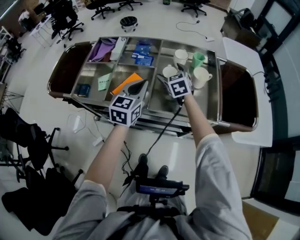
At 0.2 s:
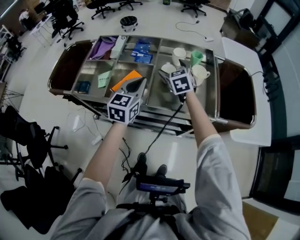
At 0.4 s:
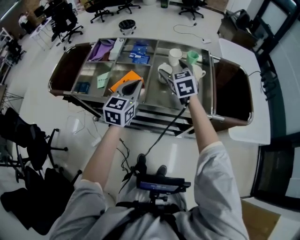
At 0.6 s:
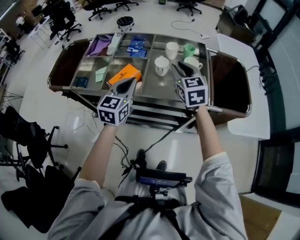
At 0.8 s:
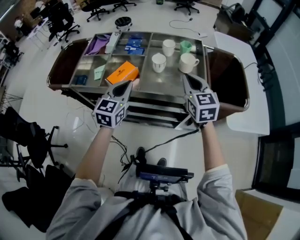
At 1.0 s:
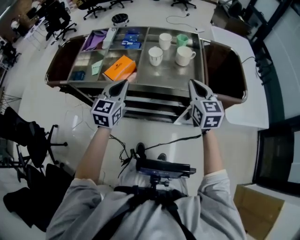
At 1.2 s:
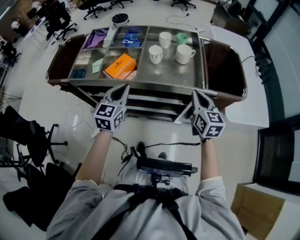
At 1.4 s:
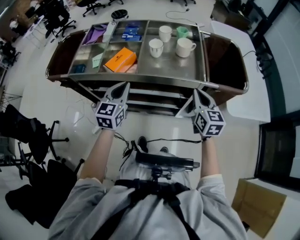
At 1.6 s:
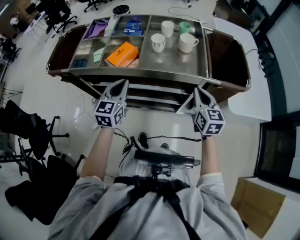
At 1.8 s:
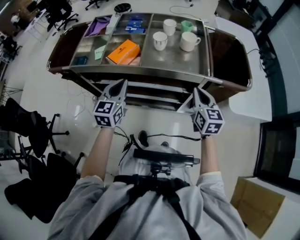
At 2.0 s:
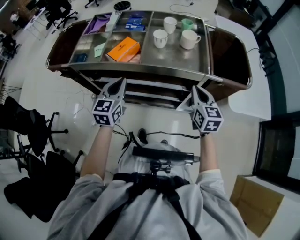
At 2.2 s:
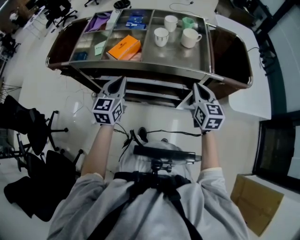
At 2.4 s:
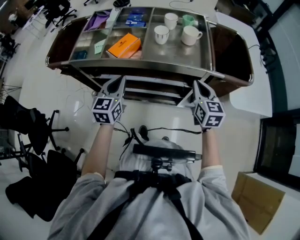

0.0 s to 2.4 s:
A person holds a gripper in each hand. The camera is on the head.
0.0 to 1.2 s: The left gripper shifts about 15 cm backward; the right gripper moves backward and to the right, roughly 35 cm, swivels about 30 degrees, and closes up.
1.2 to 2.4 s: The left gripper changes place by roughly 5 cm.

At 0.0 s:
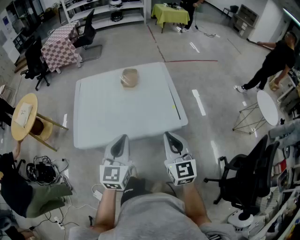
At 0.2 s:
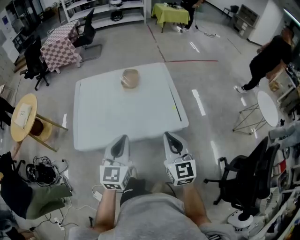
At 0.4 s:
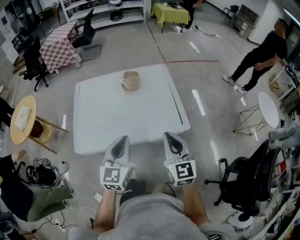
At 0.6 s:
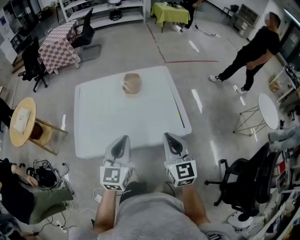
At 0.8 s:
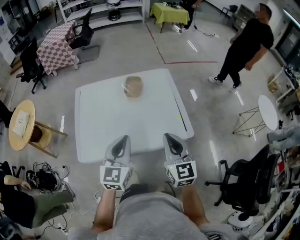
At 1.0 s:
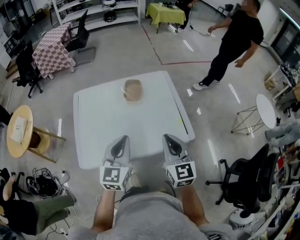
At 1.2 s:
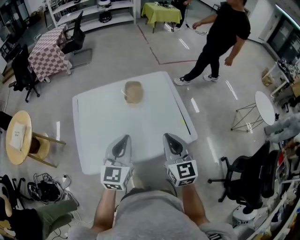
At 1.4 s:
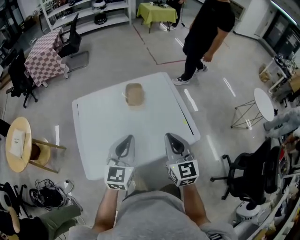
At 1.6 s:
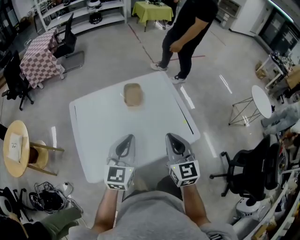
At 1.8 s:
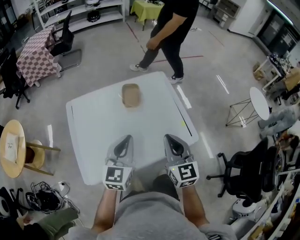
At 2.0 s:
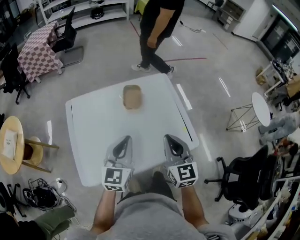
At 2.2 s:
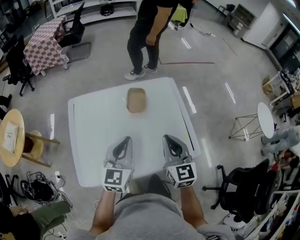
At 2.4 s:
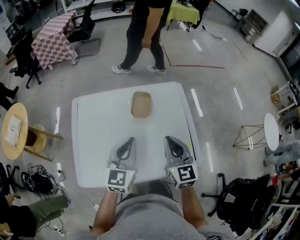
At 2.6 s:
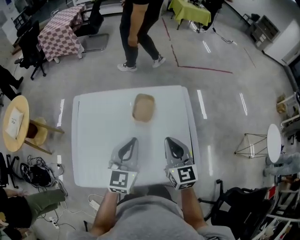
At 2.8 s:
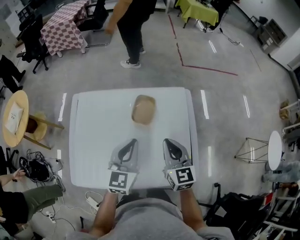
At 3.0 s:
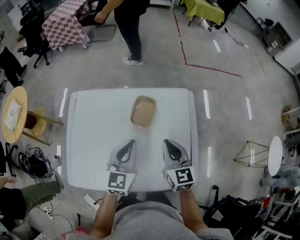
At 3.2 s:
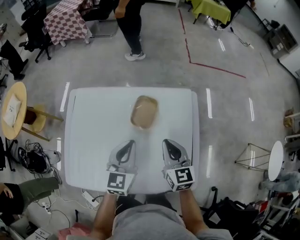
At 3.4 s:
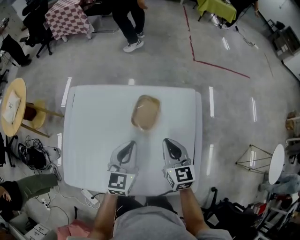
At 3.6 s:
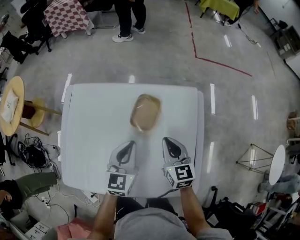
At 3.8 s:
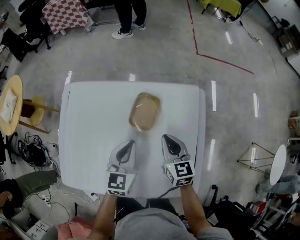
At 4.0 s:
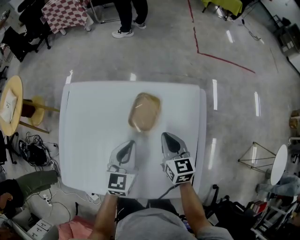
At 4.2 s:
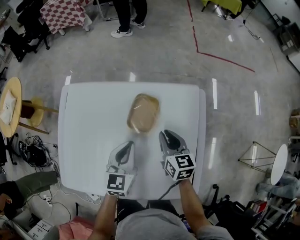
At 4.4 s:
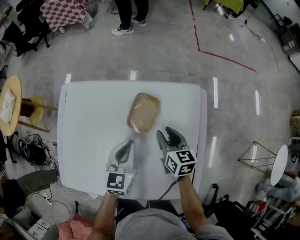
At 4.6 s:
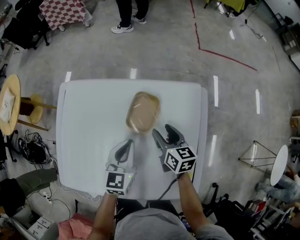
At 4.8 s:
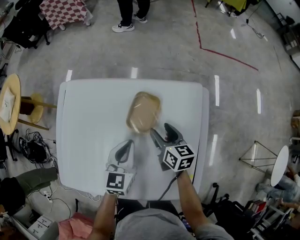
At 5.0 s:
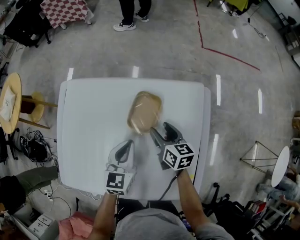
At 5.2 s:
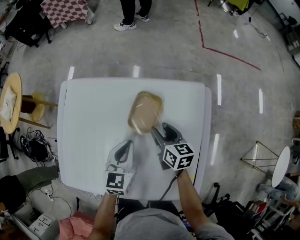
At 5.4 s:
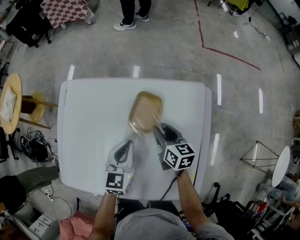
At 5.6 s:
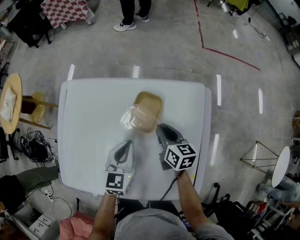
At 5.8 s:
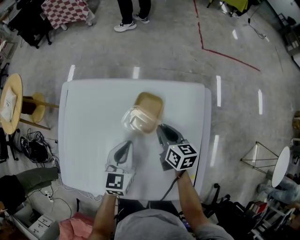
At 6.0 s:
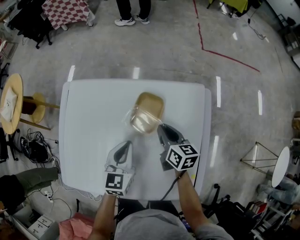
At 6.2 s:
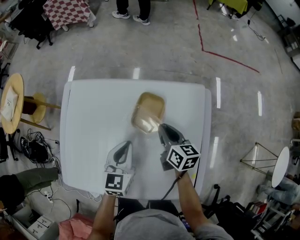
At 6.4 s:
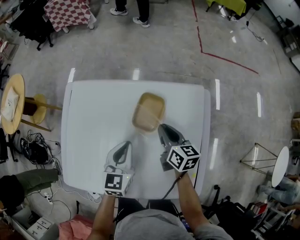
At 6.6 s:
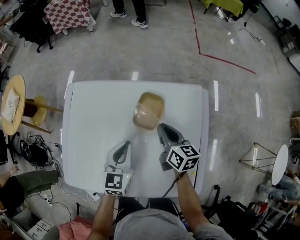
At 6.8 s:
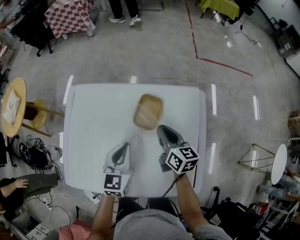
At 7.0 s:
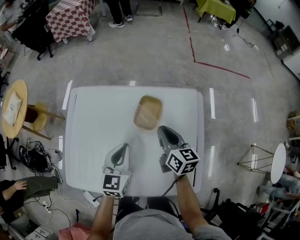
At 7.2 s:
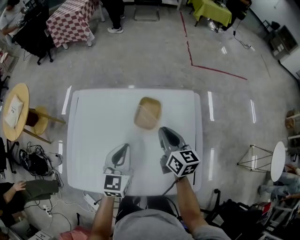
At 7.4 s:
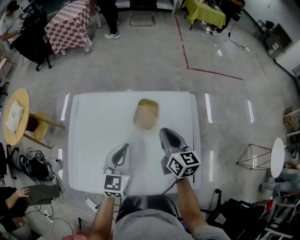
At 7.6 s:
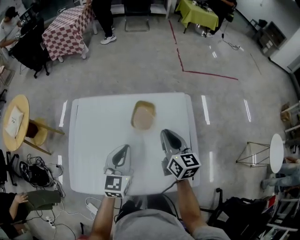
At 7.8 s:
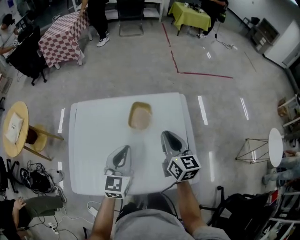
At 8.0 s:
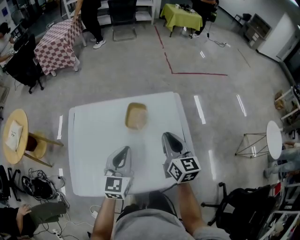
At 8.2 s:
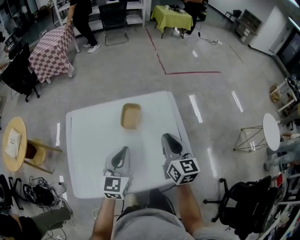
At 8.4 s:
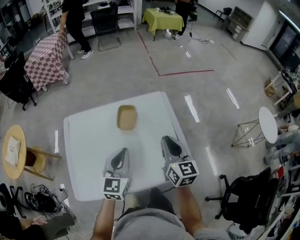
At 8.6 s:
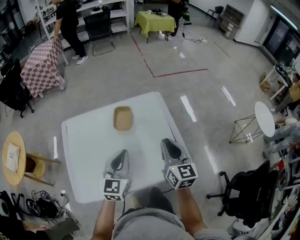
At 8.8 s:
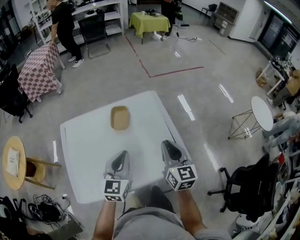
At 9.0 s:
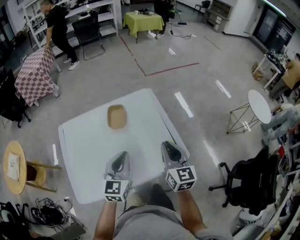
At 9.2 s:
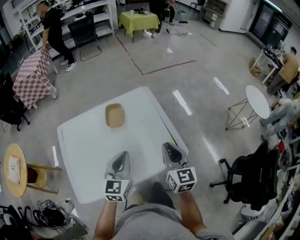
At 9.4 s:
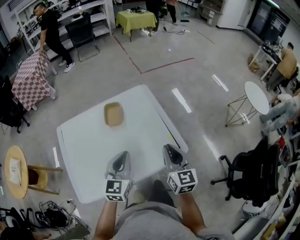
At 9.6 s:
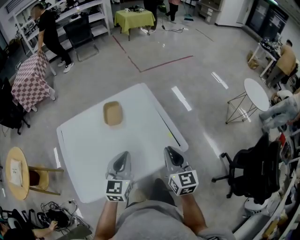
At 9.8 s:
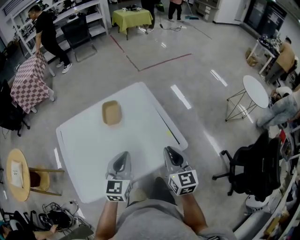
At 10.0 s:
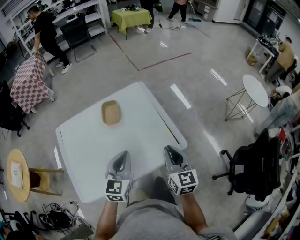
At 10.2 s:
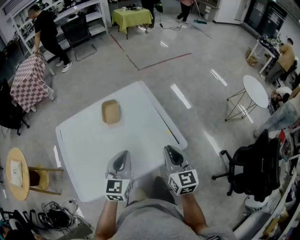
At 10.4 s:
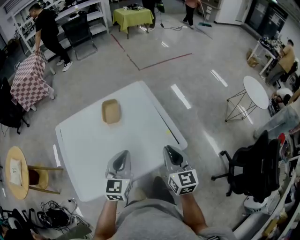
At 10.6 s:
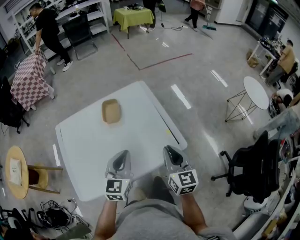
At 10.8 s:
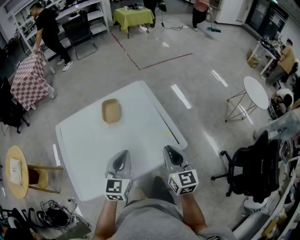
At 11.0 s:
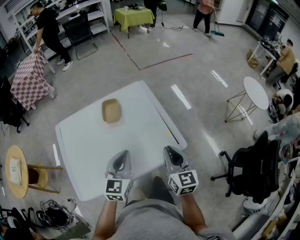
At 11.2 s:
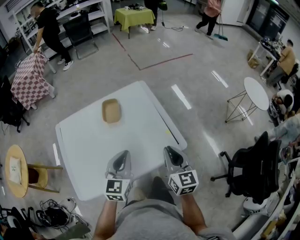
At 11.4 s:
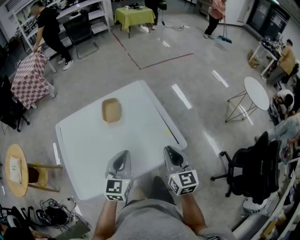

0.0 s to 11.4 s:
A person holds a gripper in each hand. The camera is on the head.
0.0 to 1.4 s: Both grippers move forward and to the left, roughly 20 cm.
1.4 to 2.8 s: Both grippers travel together forward, some 20 cm.
2.8 to 4.2 s: The grippers both shift downward and forward by approximately 20 cm. The right gripper swivels about 20 degrees.
4.2 to 5.6 s: The right gripper ends up approximately 5 cm from where it was, and opens, then closes once more.
5.6 to 7.2 s: The grippers both shift upward and backward by approximately 15 cm.
7.2 to 8.6 s: The right gripper shifts some 25 cm backward, upward and to the right, and turns by roughly 30 degrees. Meanwhile the left gripper travels backward, upward and to the right by approximately 15 cm.
8.6 to 10.0 s: The right gripper shifts roughly 15 cm backward and to the right. Meanwhile the left gripper goes roughly 10 cm backward and to the right.
10.0 to 11.4 s: Neither gripper changes place.

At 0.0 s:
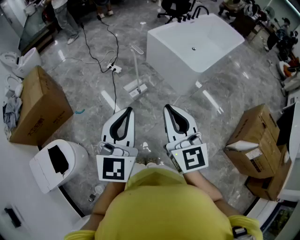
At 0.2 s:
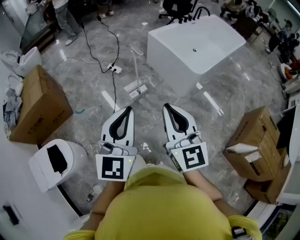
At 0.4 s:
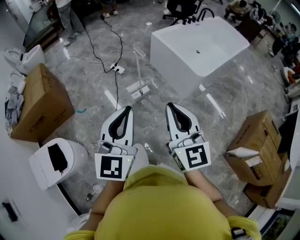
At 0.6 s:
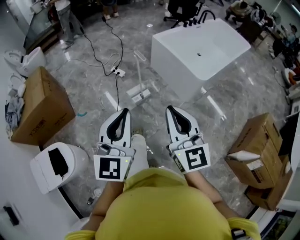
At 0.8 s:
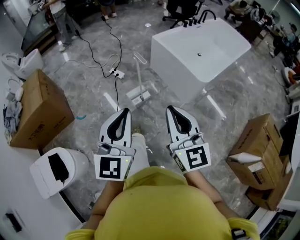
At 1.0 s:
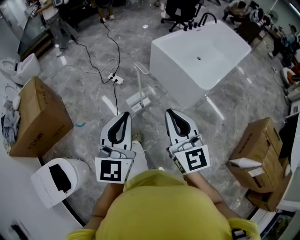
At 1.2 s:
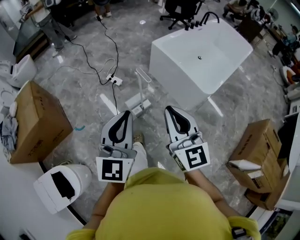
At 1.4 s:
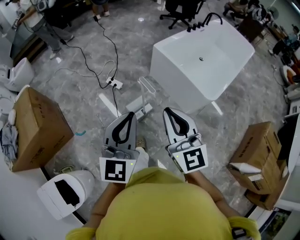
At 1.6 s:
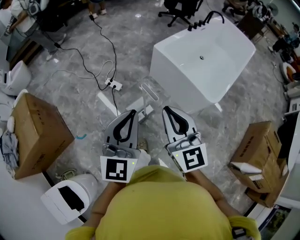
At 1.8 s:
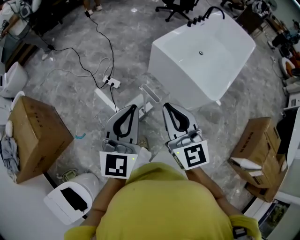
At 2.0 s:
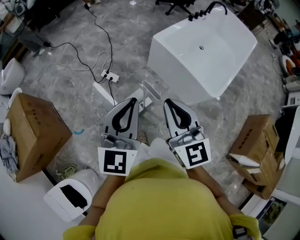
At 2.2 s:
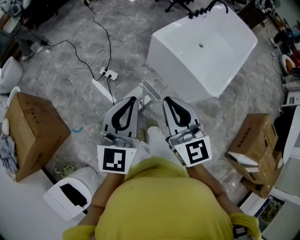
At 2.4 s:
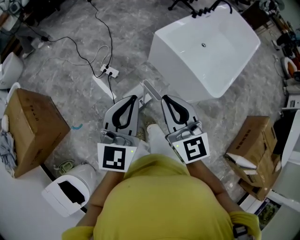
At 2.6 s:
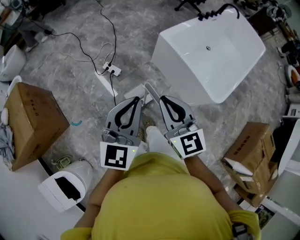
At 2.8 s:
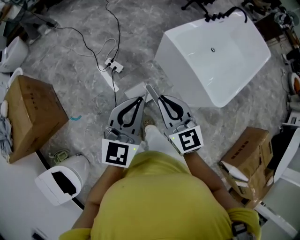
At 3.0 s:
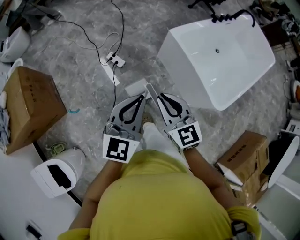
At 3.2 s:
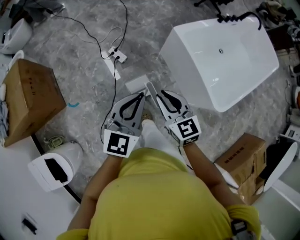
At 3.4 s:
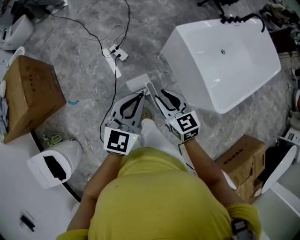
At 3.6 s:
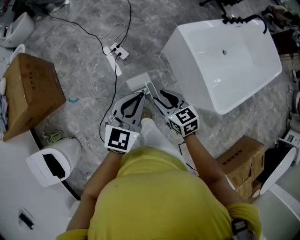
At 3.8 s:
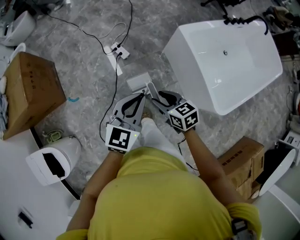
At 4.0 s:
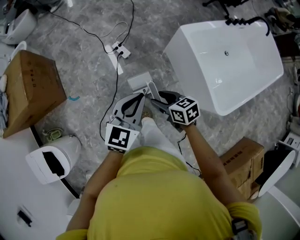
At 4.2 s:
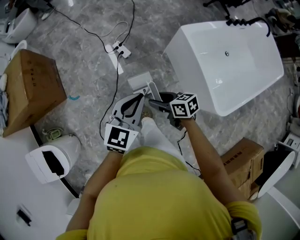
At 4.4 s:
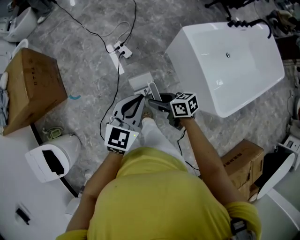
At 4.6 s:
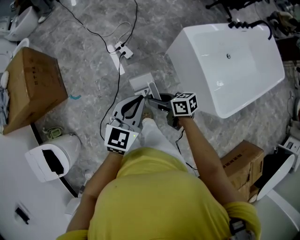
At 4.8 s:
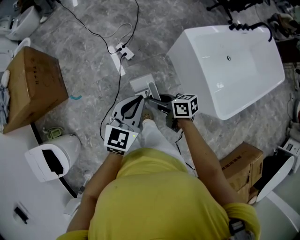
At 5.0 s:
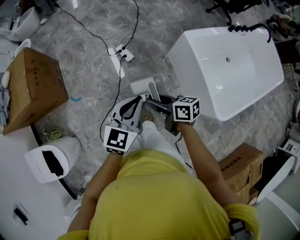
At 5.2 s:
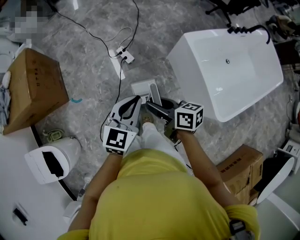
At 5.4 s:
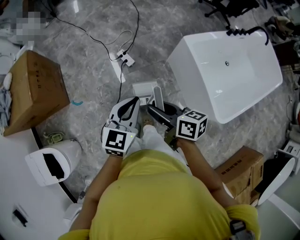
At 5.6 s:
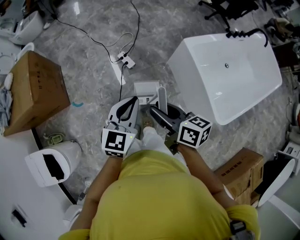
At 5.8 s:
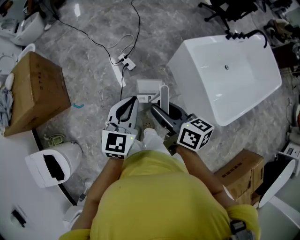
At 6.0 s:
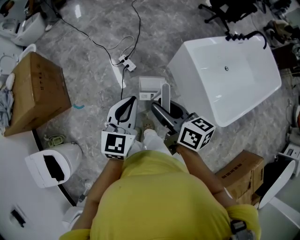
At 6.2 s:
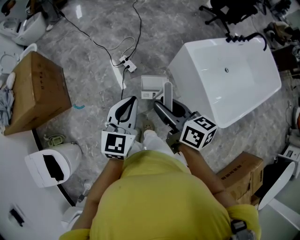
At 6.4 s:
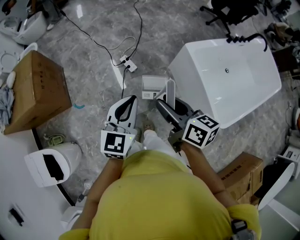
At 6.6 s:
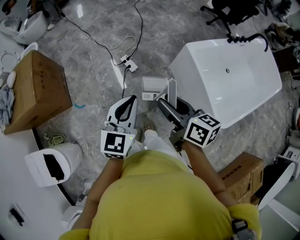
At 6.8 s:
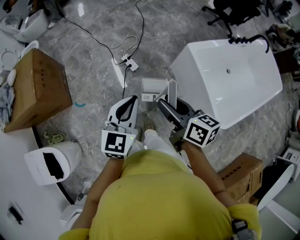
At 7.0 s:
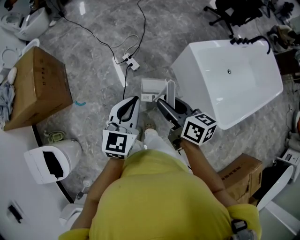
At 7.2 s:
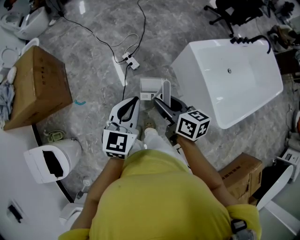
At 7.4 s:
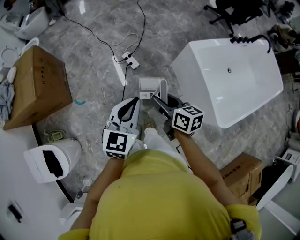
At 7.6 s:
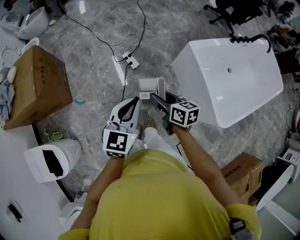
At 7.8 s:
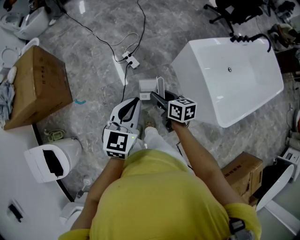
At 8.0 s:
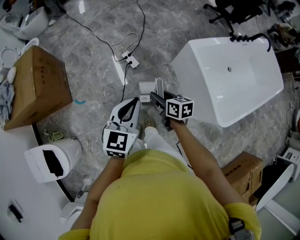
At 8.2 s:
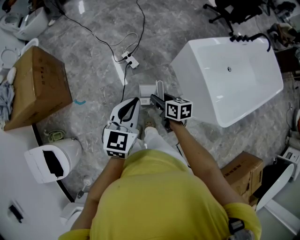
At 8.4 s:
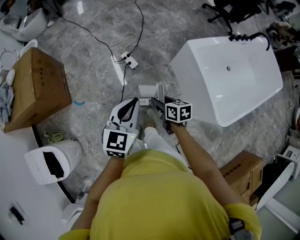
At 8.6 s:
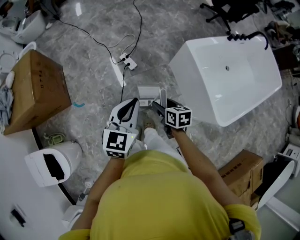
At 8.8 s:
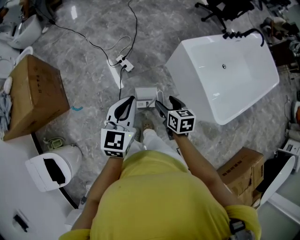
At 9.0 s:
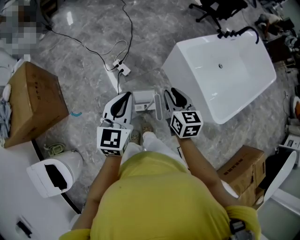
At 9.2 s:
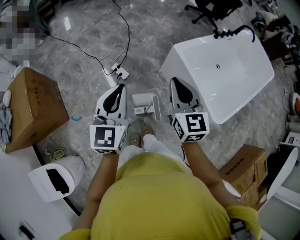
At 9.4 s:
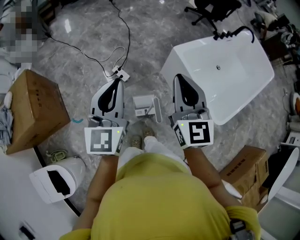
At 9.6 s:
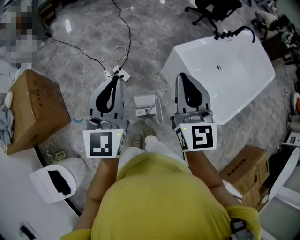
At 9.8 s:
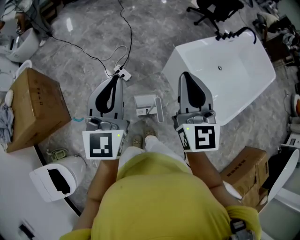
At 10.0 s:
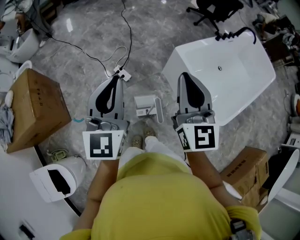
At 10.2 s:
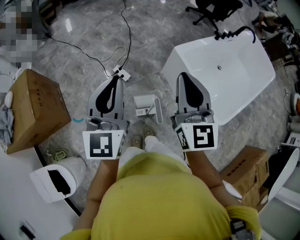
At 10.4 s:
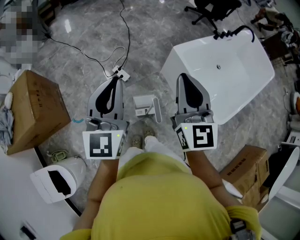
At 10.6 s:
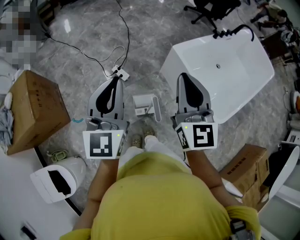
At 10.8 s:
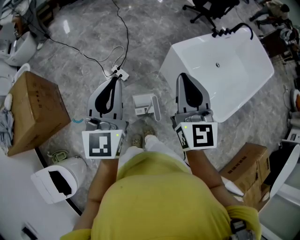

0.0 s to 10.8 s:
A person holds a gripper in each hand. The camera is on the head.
0.0 to 1.6 s: The two grippers go about 40 cm forward.
1.6 to 3.0 s: The grippers both shift forward and downward by approximately 20 cm. The right gripper swivels approximately 20 degrees.
3.0 to 4.6 s: The left gripper travels downward by about 10 cm; the right gripper is displaced downward by roughly 15 cm, turns by roughly 60 degrees, and opens, then closes once more.
4.6 to 6.2 s: The left gripper shifts some 10 cm upward and to the left, while the right gripper travels upward by approximately 20 cm, and swivels approximately 30 degrees.
6.2 to 7.8 s: The right gripper goes some 15 cm downward.
7.8 to 9.2 s: The left gripper goes some 10 cm upward and forward, while the right gripper is displaced upward and to the right by some 20 cm, rotates roughly 50 degrees, and closes its fingers.
9.2 to 10.8 s: Both grippers travel together upward, roughly 10 cm.
